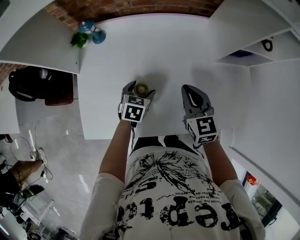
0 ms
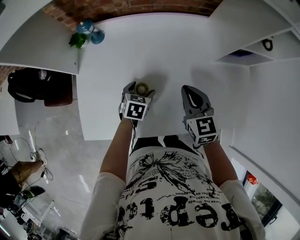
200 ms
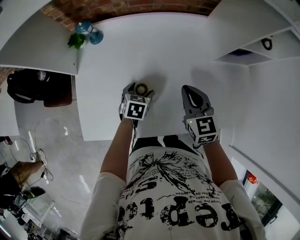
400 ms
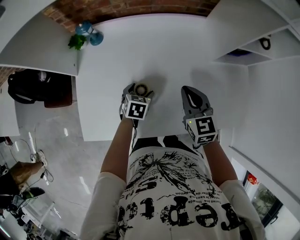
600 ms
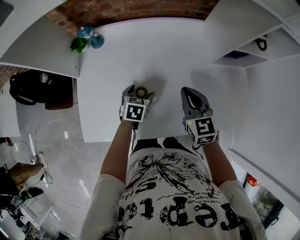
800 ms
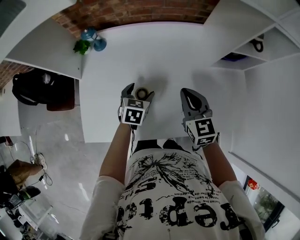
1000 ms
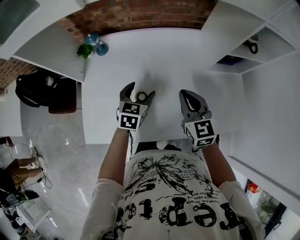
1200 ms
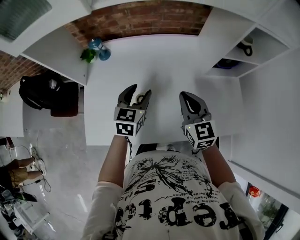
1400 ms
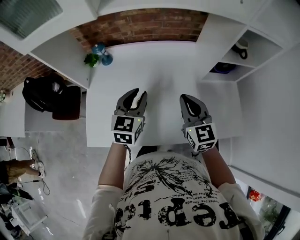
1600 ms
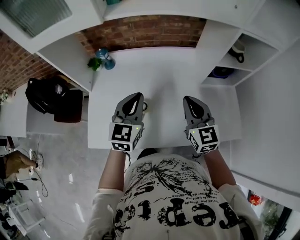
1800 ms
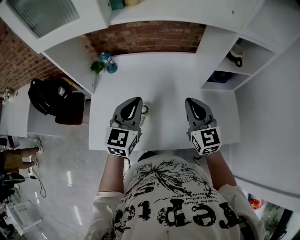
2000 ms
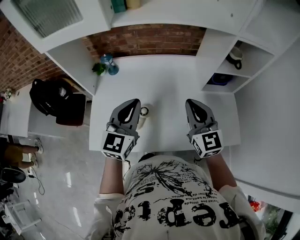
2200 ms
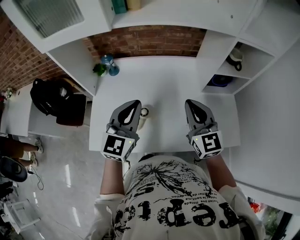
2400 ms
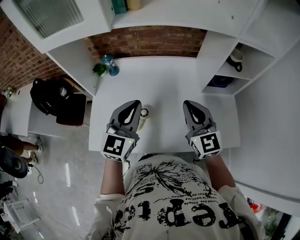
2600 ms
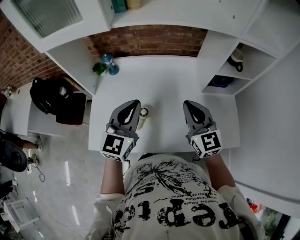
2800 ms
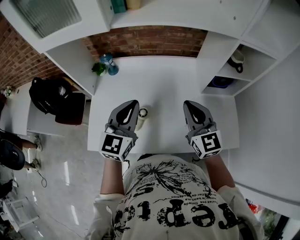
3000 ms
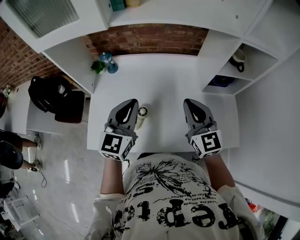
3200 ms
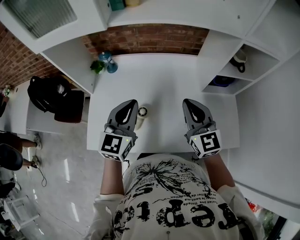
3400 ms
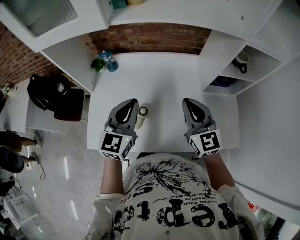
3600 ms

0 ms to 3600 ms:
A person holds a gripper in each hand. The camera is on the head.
0 ms to 1800 ms: The right gripper shifts roughly 15 cm upward. Meanwhile the left gripper heads upward, covering about 30 cm, angles its fingers upward, by about 40 degrees, and closes its fingers.

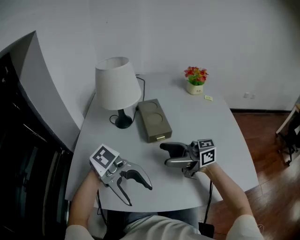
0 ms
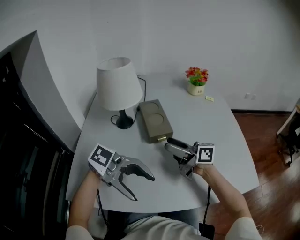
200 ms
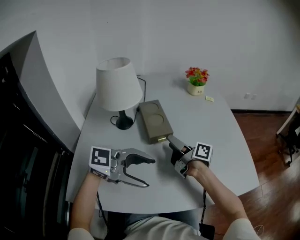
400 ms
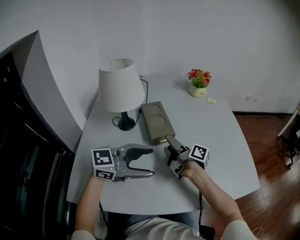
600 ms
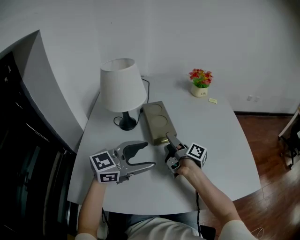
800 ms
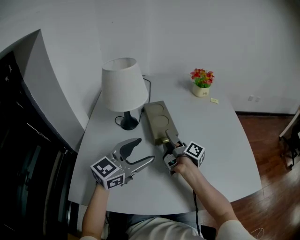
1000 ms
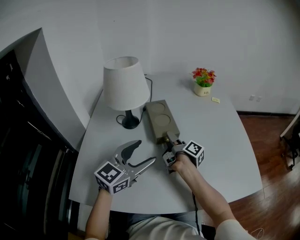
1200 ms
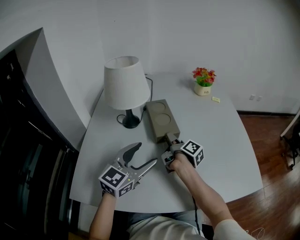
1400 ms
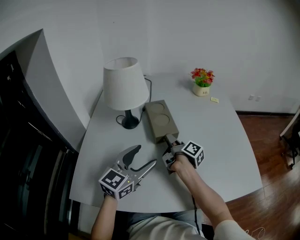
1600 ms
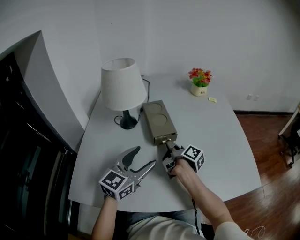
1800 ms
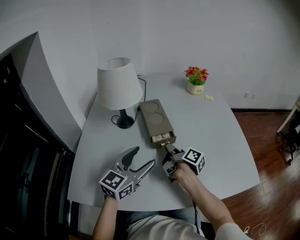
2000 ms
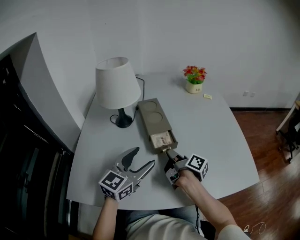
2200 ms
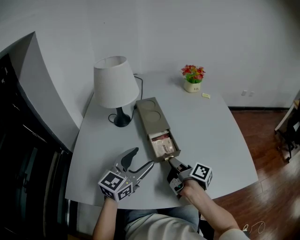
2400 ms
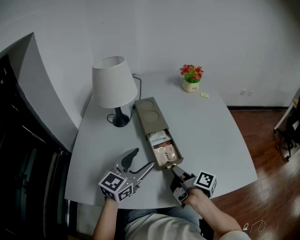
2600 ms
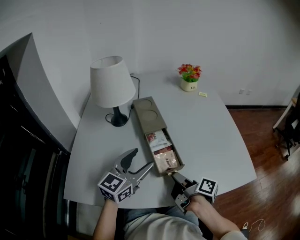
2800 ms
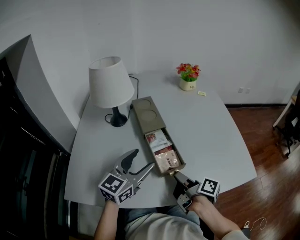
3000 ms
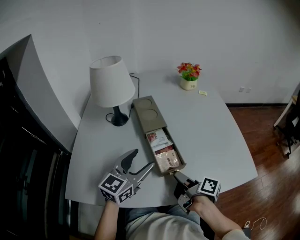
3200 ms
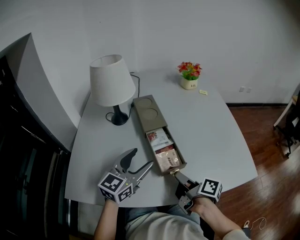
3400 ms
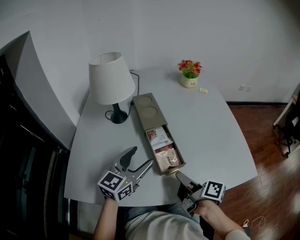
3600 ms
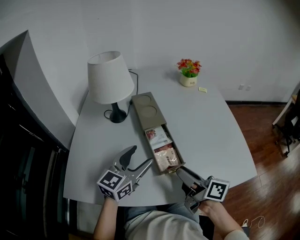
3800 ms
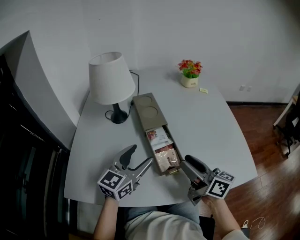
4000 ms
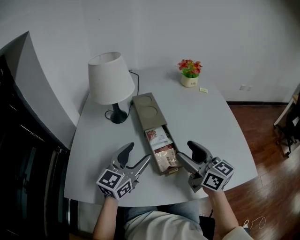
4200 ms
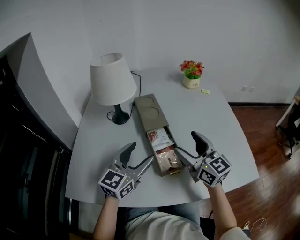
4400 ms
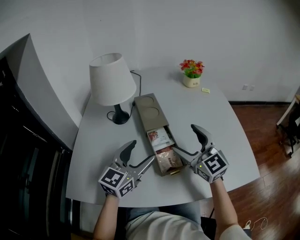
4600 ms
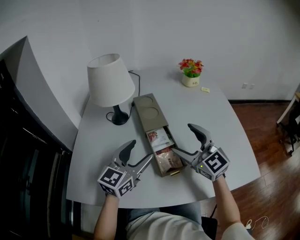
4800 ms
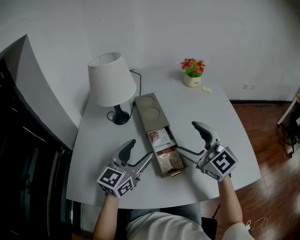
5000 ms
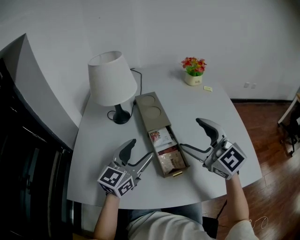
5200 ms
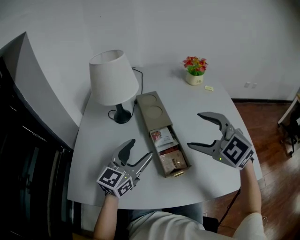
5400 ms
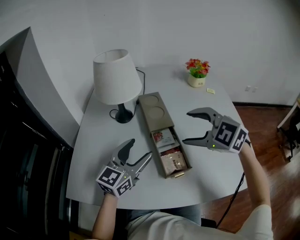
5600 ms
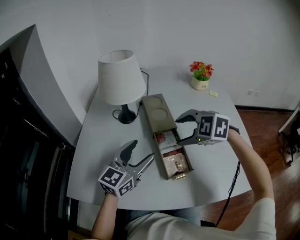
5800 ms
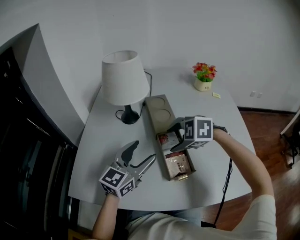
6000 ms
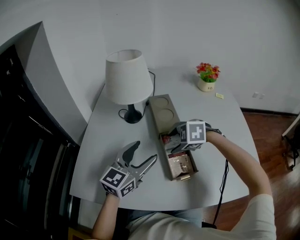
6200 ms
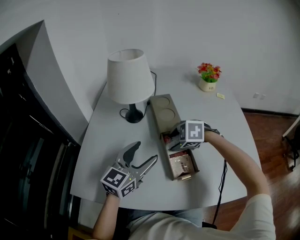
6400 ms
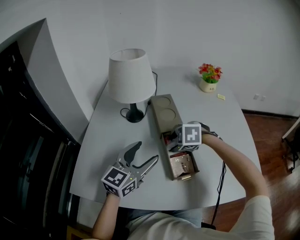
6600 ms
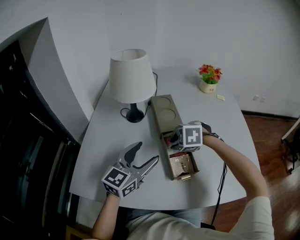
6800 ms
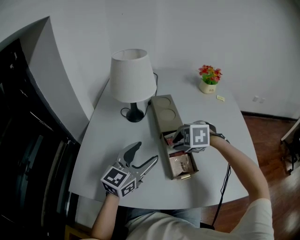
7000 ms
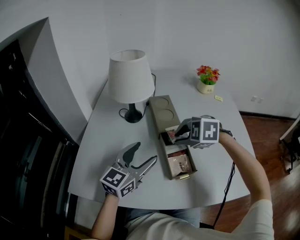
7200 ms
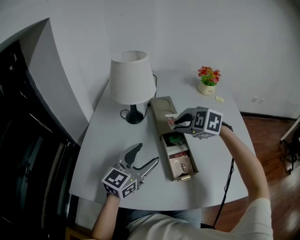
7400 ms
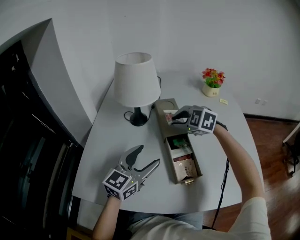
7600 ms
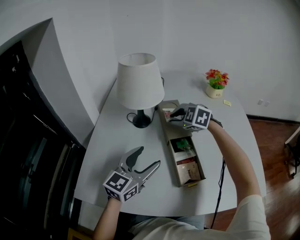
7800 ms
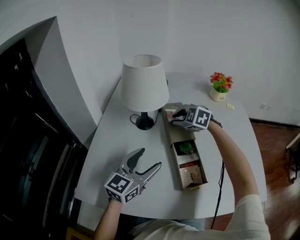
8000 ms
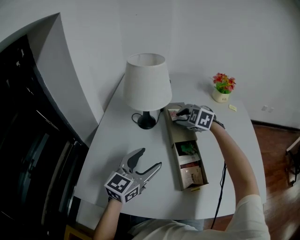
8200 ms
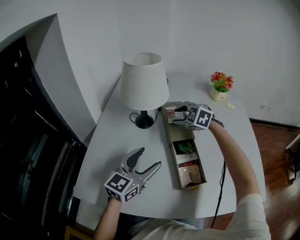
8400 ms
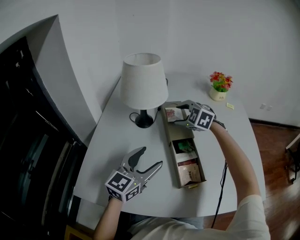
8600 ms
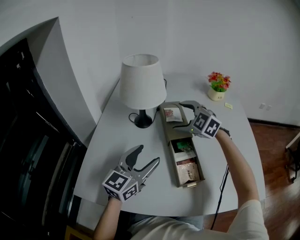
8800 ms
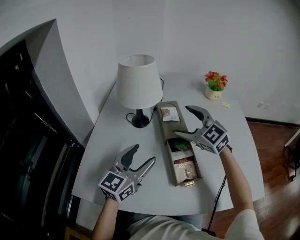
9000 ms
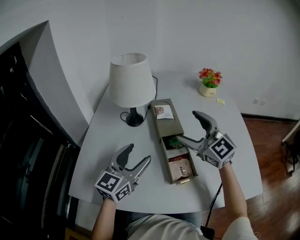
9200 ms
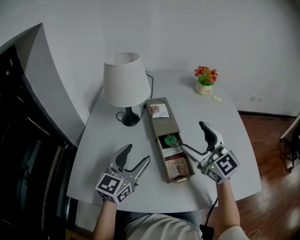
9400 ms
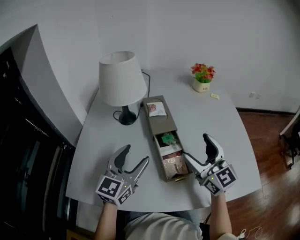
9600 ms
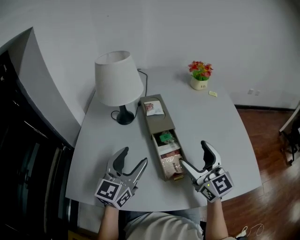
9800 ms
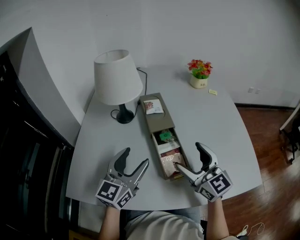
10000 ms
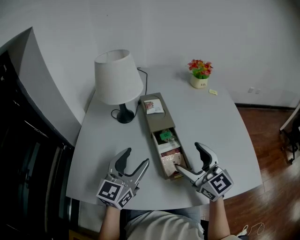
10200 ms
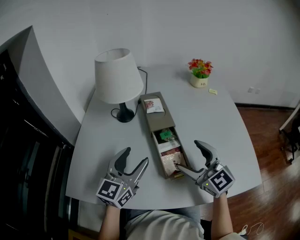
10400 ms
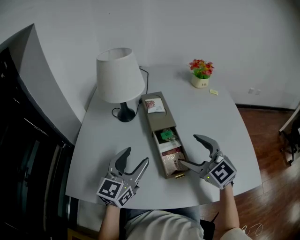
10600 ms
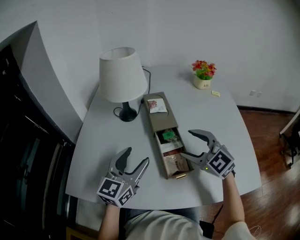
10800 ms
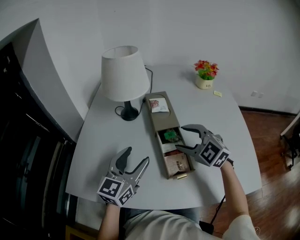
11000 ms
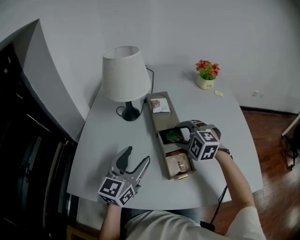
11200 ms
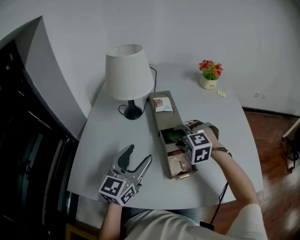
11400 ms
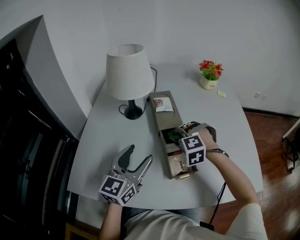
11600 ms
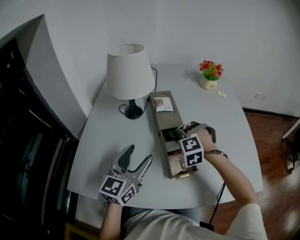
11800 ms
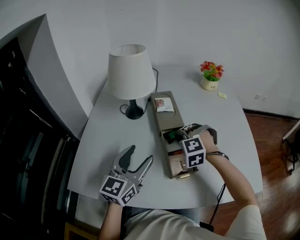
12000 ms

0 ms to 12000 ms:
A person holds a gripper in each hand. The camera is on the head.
0 ms to 1600 ms: The left gripper shifts by about 20 cm, and rotates about 90 degrees. Meanwhile the right gripper moves roughly 20 cm, swivels about 80 degrees, and closes its fingers.
1600 ms to 3000 ms: The right gripper shifts roughly 20 cm backward and to the right.
3000 ms to 4400 ms: The right gripper is displaced upward and forward by about 15 cm, twists about 80 degrees counterclockwise, seen from behind, and opens.
4400 ms to 6000 ms: The right gripper heads to the left, downward and forward, covering roughly 15 cm, and angles its fingers downward, by approximately 60 degrees.
6000 ms to 7600 ms: The right gripper shifts about 10 cm forward, and closes its fingers.
7600 ms to 9000 ms: The right gripper travels upward by about 5 cm, travels forward and back again, roughly 10 cm each way, tips its fingers upward by approximately 30 degrees, and opens.
9000 ms to 10400 ms: The right gripper is displaced backward and to the right by about 15 cm, and changes its angle by some 20 degrees.
10400 ms to 12000 ms: The right gripper travels downward and forward by some 15 cm, points its fingers roughly 50 degrees further downward, and closes up.

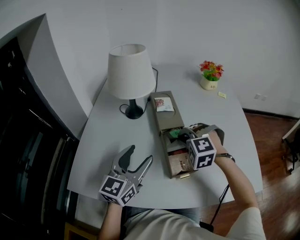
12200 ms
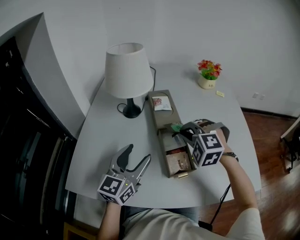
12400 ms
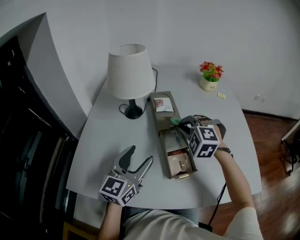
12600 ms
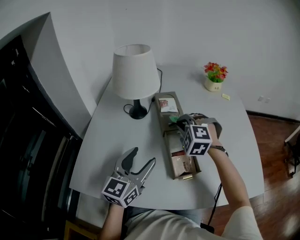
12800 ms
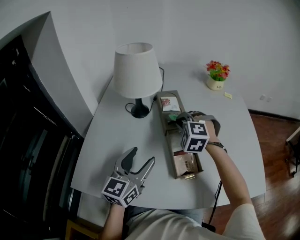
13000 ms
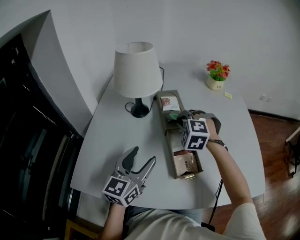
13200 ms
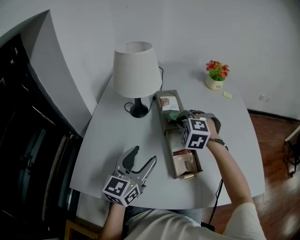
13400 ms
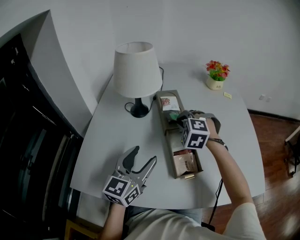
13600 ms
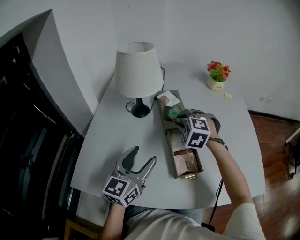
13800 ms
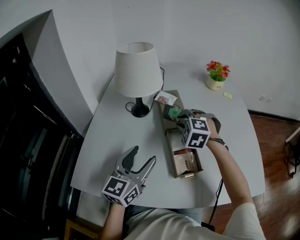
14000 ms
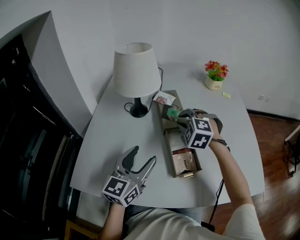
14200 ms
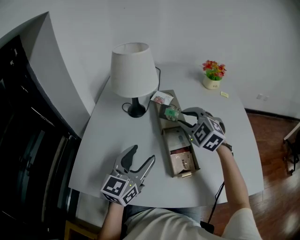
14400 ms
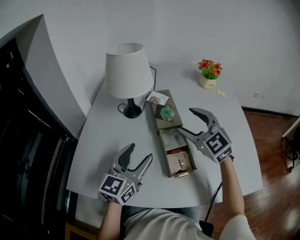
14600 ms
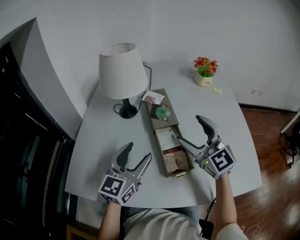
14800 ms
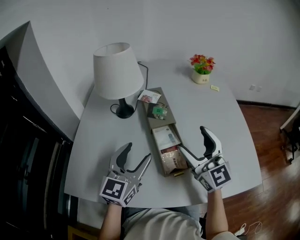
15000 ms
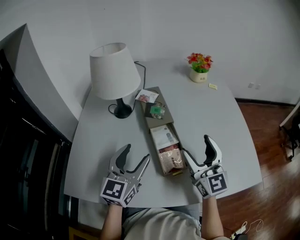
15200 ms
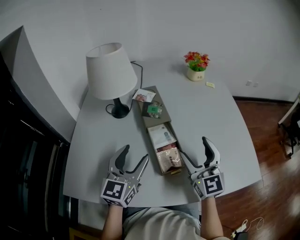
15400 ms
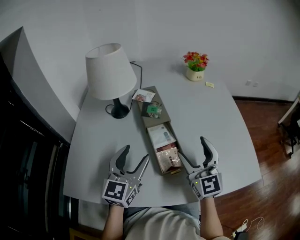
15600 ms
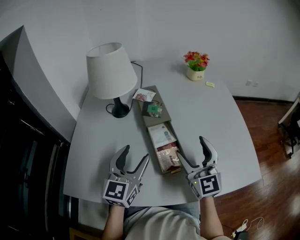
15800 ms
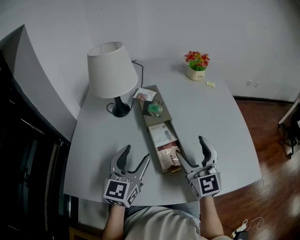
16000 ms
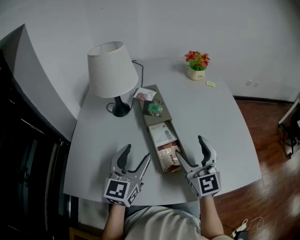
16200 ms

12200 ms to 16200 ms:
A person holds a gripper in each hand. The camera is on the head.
12200 ms to 13600 ms: The right gripper is displaced forward by approximately 10 cm.
13600 ms to 14800 ms: The right gripper travels upward, backward and to the right by roughly 15 cm, tips its fingers upward by about 50 degrees, and opens its fingers.
14800 ms to 16200 ms: The right gripper travels downward and backward by roughly 10 cm.

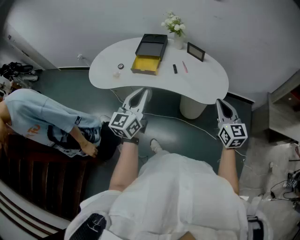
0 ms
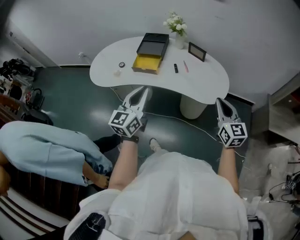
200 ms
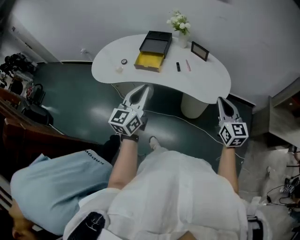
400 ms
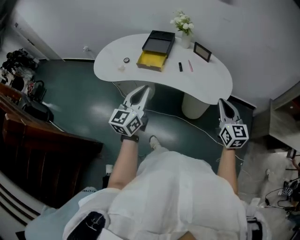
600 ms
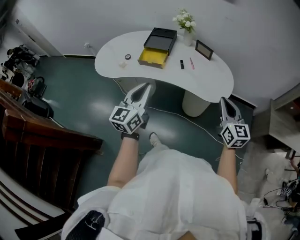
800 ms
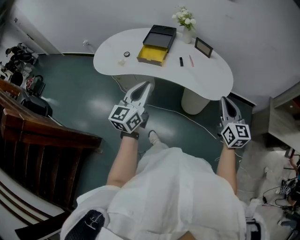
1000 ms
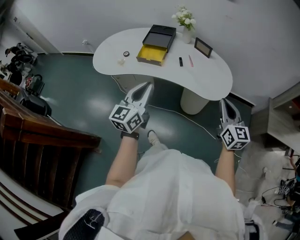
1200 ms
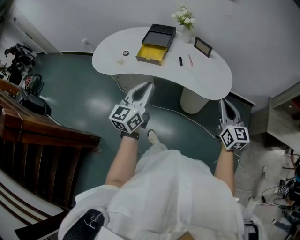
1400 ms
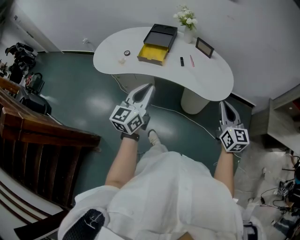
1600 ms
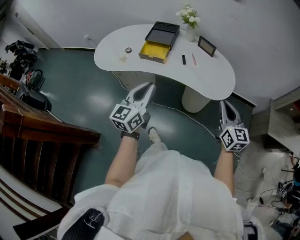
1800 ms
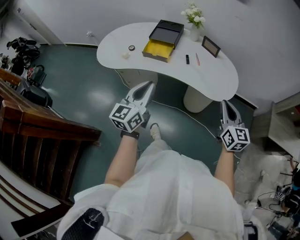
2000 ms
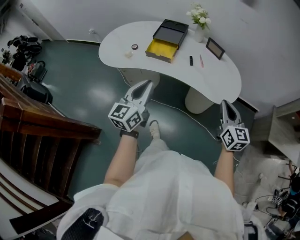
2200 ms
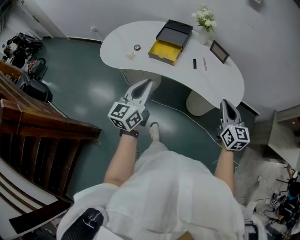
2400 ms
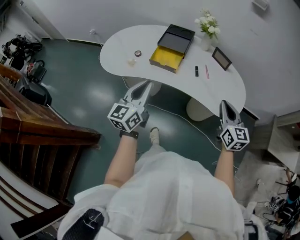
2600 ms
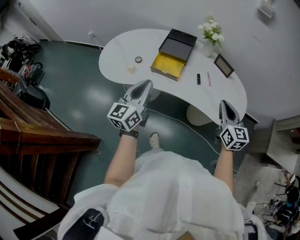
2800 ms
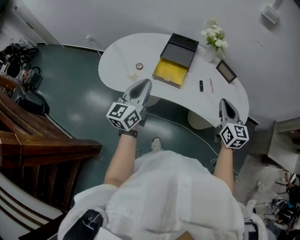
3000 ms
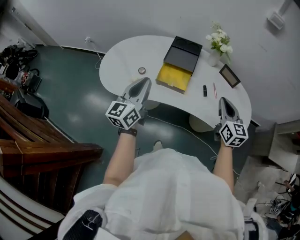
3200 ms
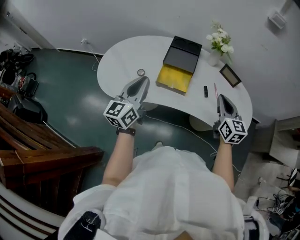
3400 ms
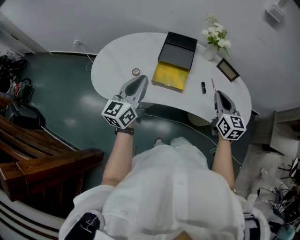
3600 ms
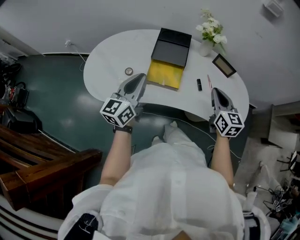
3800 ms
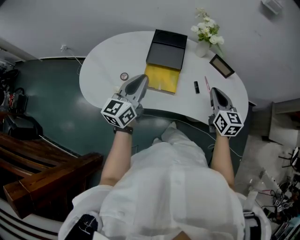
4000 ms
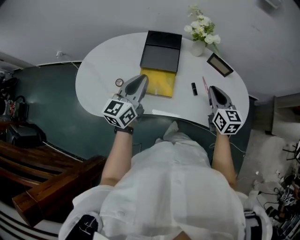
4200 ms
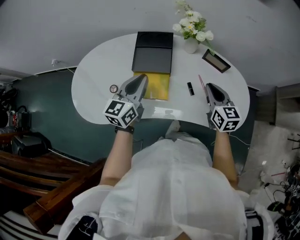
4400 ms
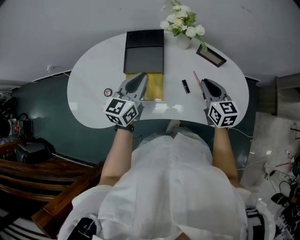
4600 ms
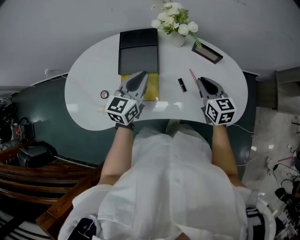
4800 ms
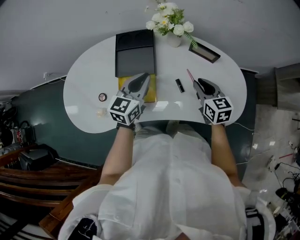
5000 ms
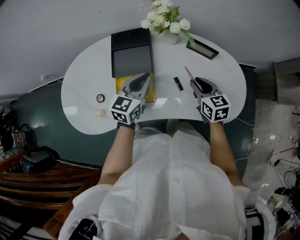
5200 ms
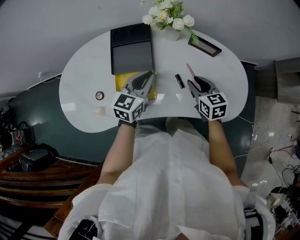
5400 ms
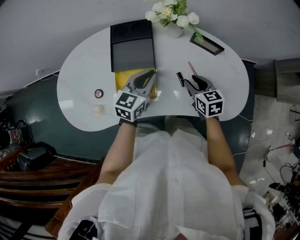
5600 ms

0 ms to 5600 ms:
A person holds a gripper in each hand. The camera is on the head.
0 ms to 1400 ms: The grippers make only small movements.
1400 ms to 2800 ms: The grippers both shift forward and to the left by about 20 cm.
2800 ms to 4200 ms: The grippers both shift forward by roughly 20 cm.
4200 ms to 5600 ms: The right gripper goes about 15 cm downward, turns by some 20 degrees, and opens up, while the left gripper is displaced to the right, downward and forward by about 20 cm, and rotates about 30 degrees.
